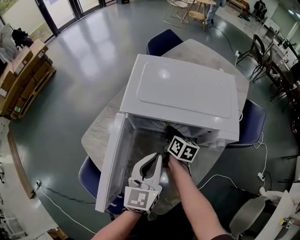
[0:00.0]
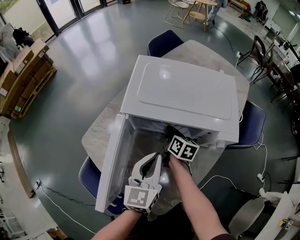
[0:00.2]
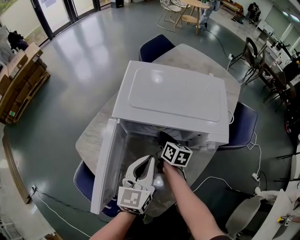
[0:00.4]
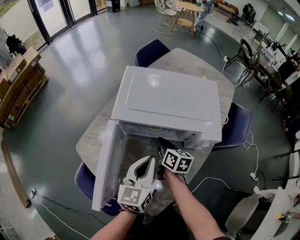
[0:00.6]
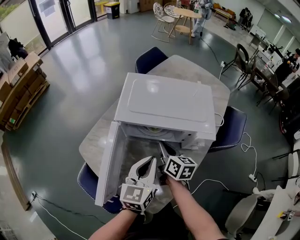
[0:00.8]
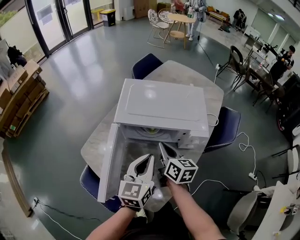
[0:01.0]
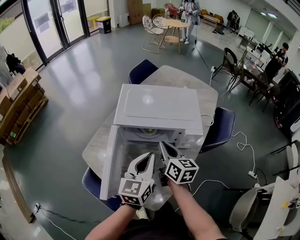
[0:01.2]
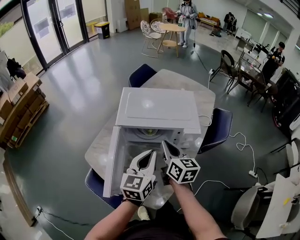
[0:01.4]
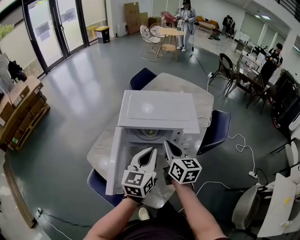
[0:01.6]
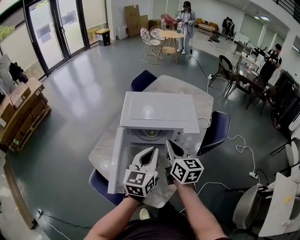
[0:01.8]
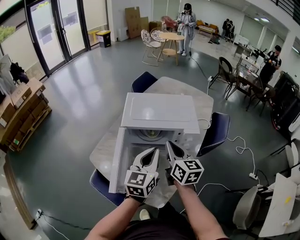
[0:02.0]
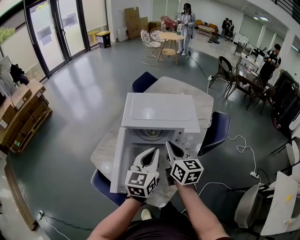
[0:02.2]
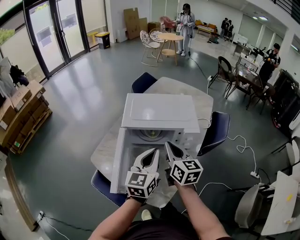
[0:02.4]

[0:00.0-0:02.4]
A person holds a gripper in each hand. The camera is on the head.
0:00.0 to 0:01.2: The left gripper goes roughly 10 cm upward, while the right gripper shifts some 25 cm upward and backward.
0:01.2 to 0:02.4: The left gripper ends up about 5 cm from where it was. The right gripper moves upward and backward, roughly 10 cm.

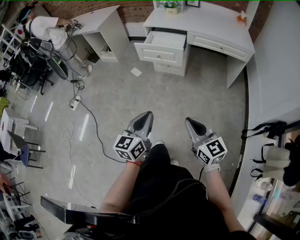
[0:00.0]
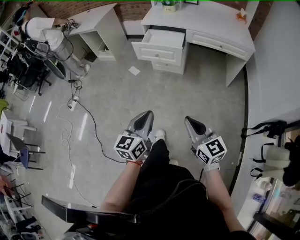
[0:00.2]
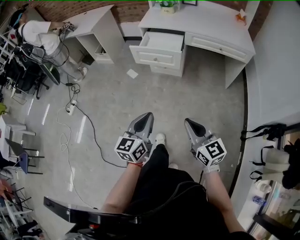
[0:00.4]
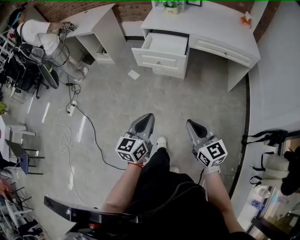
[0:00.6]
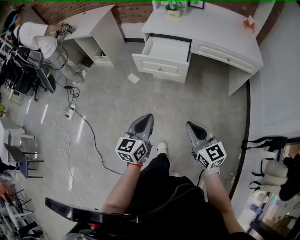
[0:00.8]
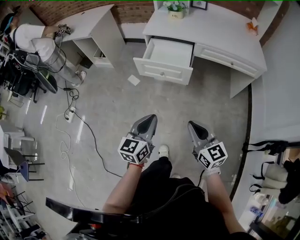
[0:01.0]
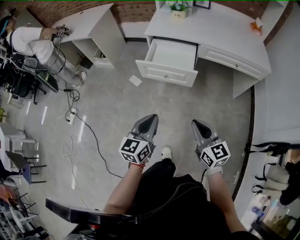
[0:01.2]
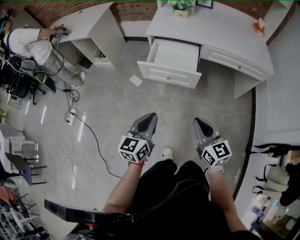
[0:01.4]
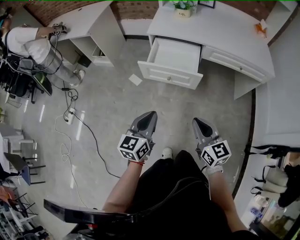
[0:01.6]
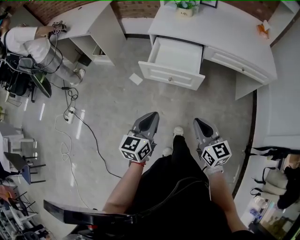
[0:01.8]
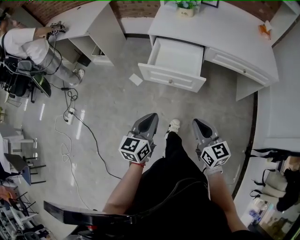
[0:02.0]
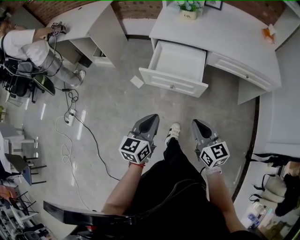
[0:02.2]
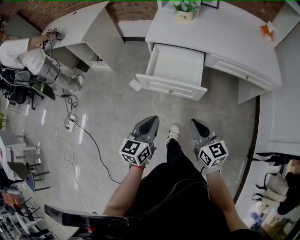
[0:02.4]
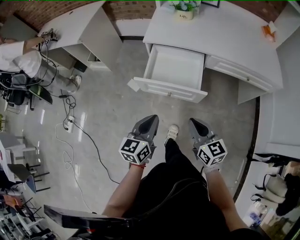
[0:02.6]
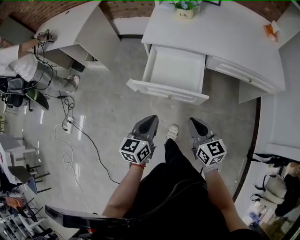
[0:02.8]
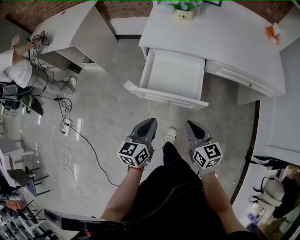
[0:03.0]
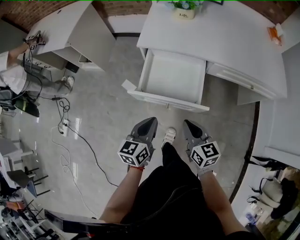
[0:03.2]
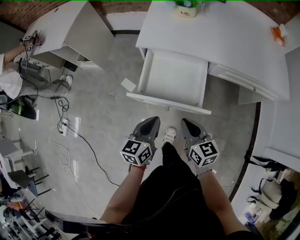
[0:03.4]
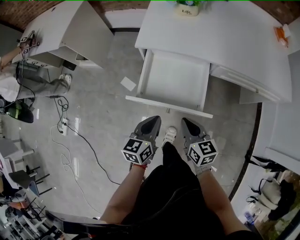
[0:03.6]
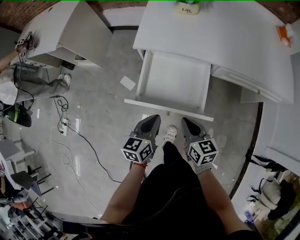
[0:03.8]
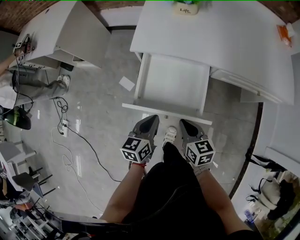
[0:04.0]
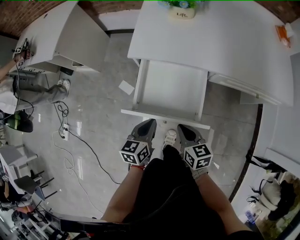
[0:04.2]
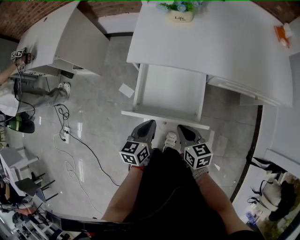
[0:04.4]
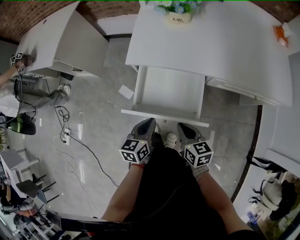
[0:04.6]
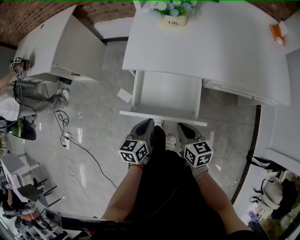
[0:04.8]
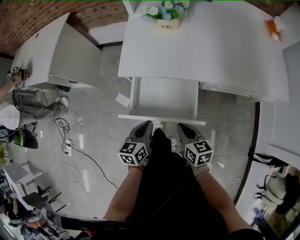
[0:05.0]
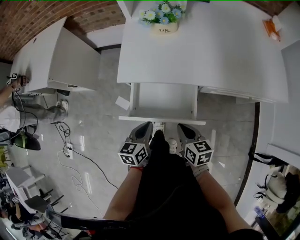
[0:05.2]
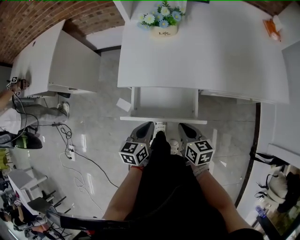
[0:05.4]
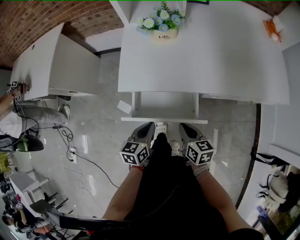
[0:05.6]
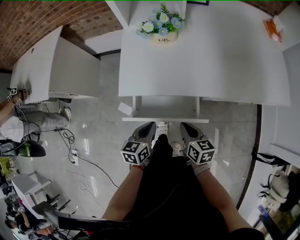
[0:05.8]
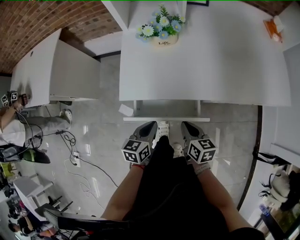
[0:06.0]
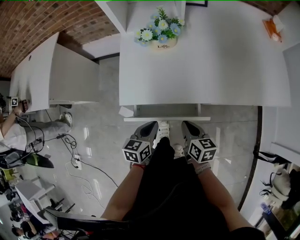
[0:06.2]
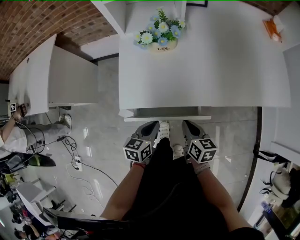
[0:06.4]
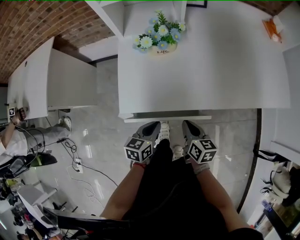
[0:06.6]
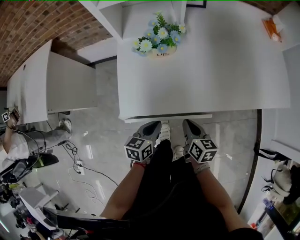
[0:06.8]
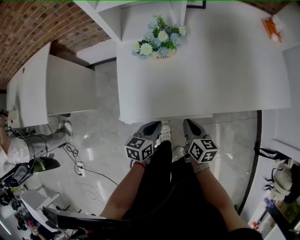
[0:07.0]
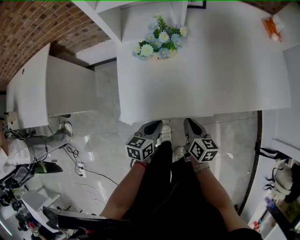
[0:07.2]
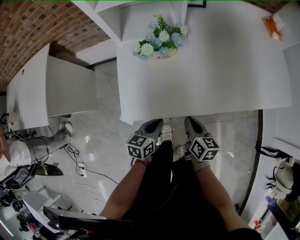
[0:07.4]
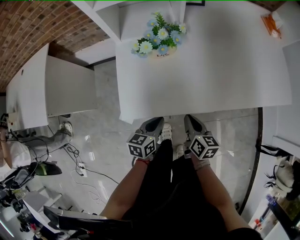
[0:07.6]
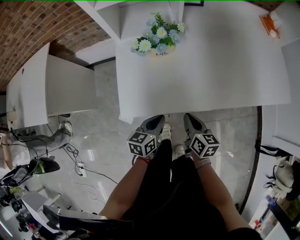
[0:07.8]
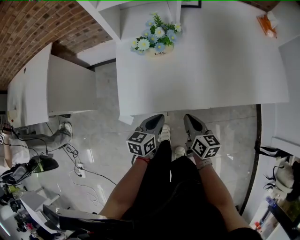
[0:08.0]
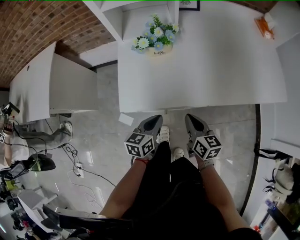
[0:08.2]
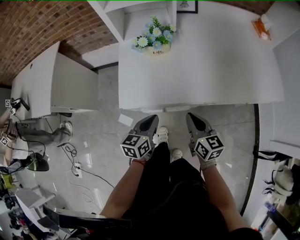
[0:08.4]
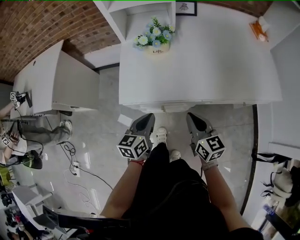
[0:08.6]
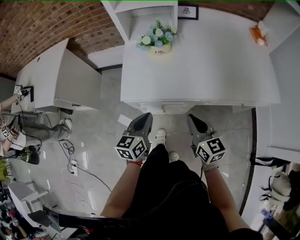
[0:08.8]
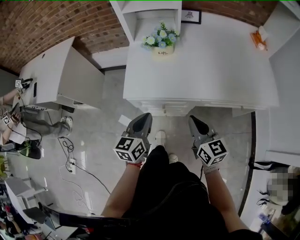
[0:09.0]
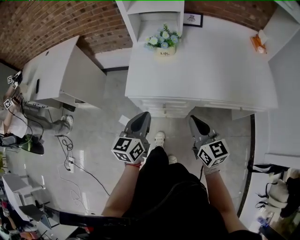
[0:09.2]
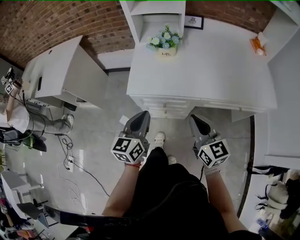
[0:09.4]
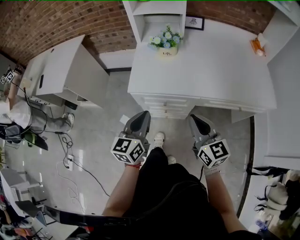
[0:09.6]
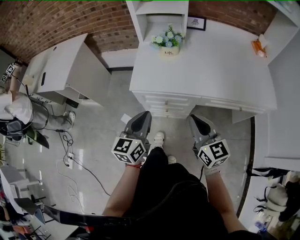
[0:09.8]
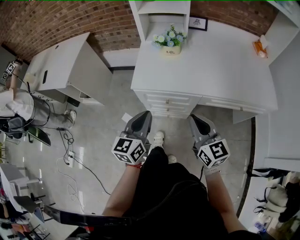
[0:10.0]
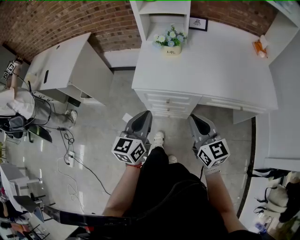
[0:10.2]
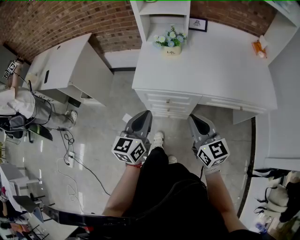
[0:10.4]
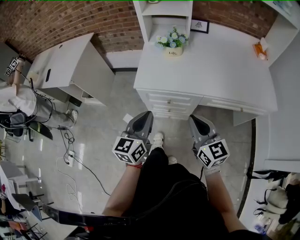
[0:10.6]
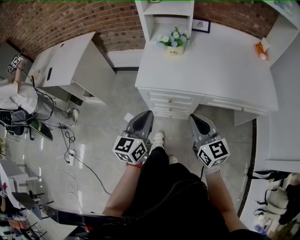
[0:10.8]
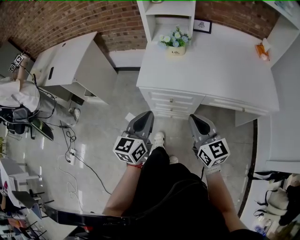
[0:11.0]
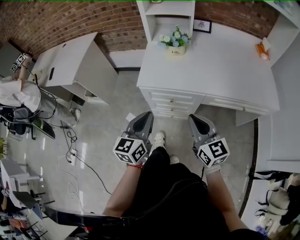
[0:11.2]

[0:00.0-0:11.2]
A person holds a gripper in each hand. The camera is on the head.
0:00.0 to 0:01.6: The grippers both shift forward by about 30 cm.
0:01.6 to 0:03.2: Both grippers travel together forward and downward, about 25 cm.
0:03.2 to 0:04.8: Both grippers move forward and downward, some 15 cm.
0:04.8 to 0:06.4: The grippers both shift forward by approximately 15 cm.
0:06.4 to 0:08.0: The left gripper shifts by some 5 cm.
0:08.0 to 0:09.6: The grippers both shift upward and backward by about 20 cm. The right gripper swivels about 40 degrees; the left gripper turns by roughly 30 degrees.
0:09.6 to 0:11.2: The left gripper heads backward, covering approximately 5 cm.

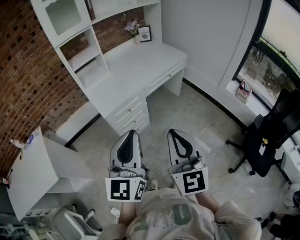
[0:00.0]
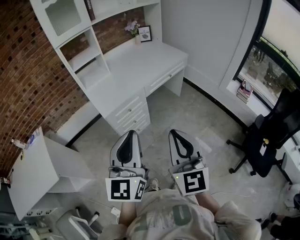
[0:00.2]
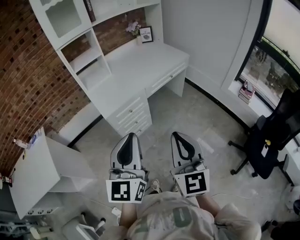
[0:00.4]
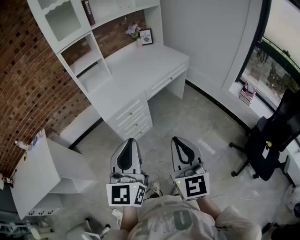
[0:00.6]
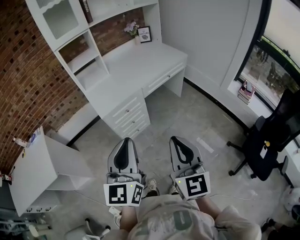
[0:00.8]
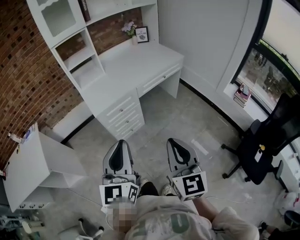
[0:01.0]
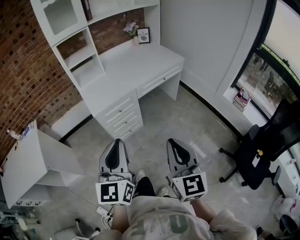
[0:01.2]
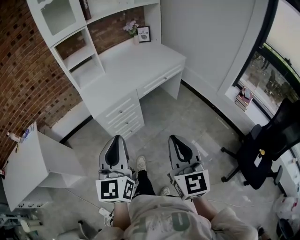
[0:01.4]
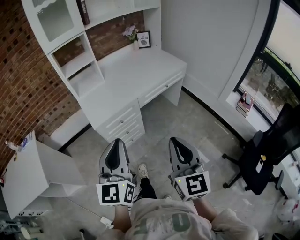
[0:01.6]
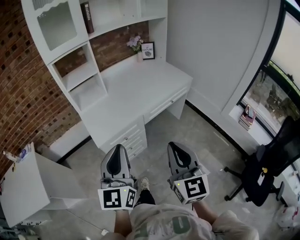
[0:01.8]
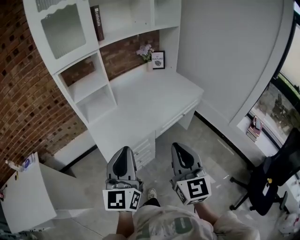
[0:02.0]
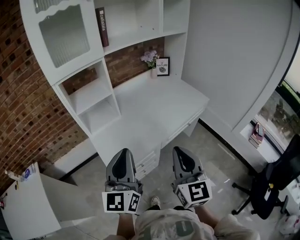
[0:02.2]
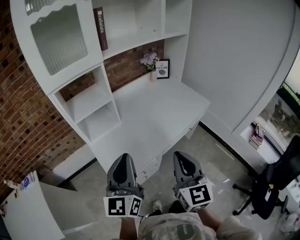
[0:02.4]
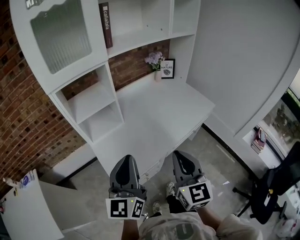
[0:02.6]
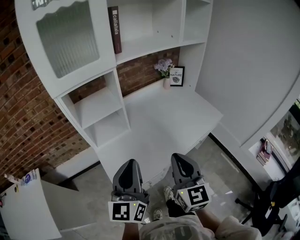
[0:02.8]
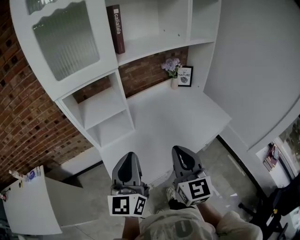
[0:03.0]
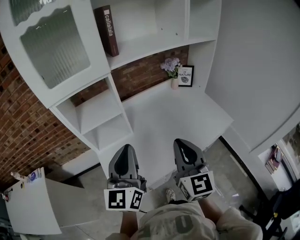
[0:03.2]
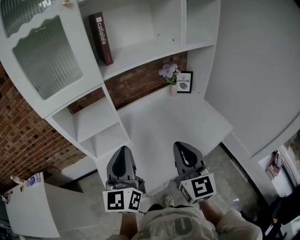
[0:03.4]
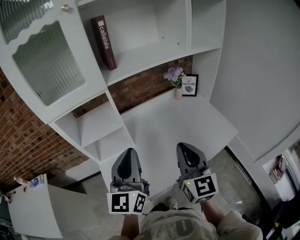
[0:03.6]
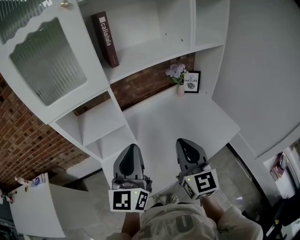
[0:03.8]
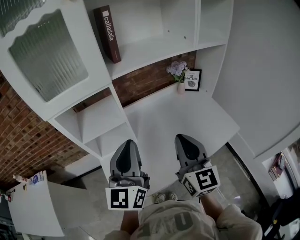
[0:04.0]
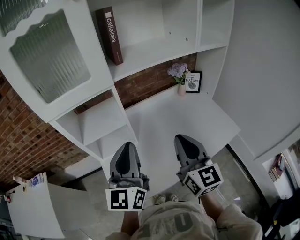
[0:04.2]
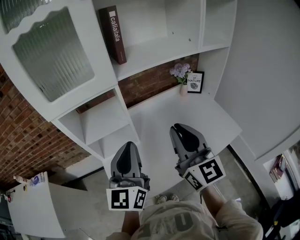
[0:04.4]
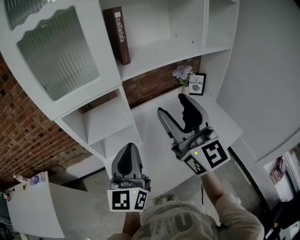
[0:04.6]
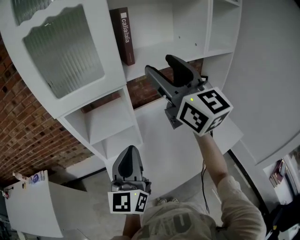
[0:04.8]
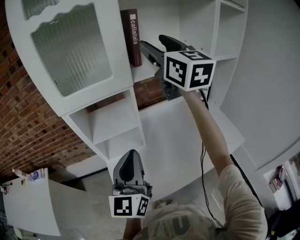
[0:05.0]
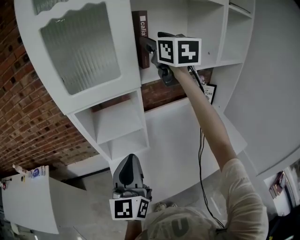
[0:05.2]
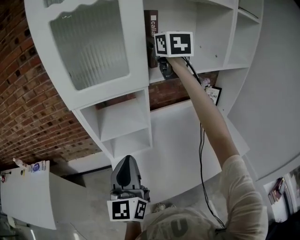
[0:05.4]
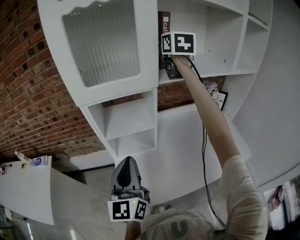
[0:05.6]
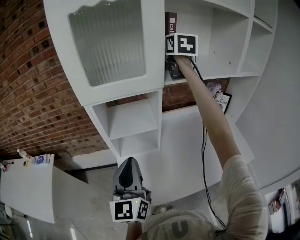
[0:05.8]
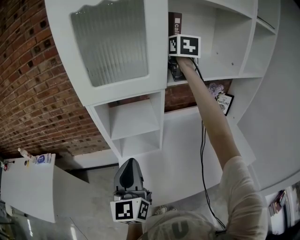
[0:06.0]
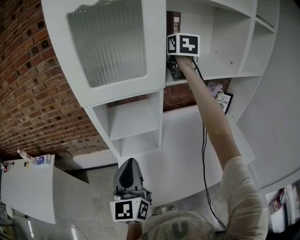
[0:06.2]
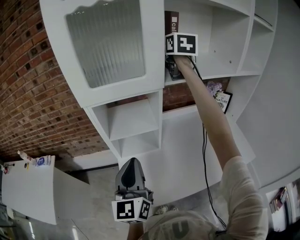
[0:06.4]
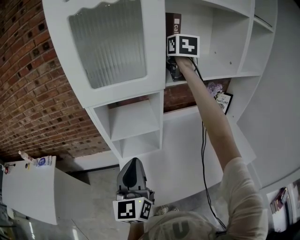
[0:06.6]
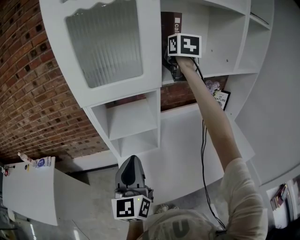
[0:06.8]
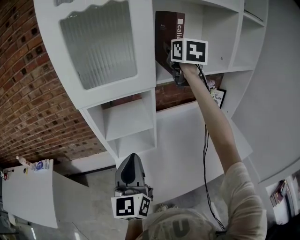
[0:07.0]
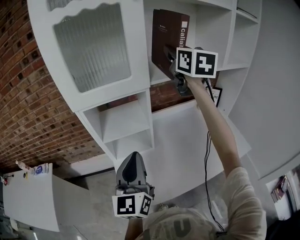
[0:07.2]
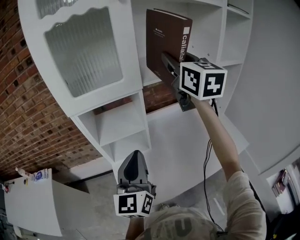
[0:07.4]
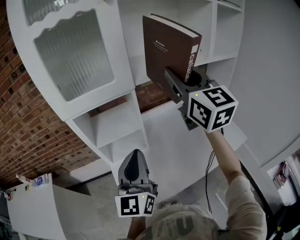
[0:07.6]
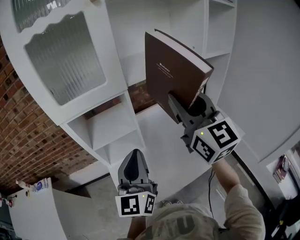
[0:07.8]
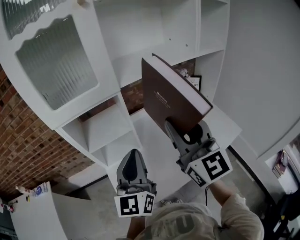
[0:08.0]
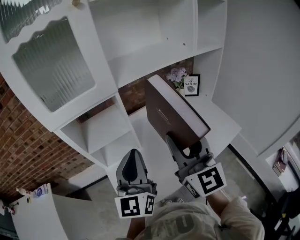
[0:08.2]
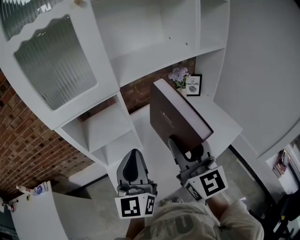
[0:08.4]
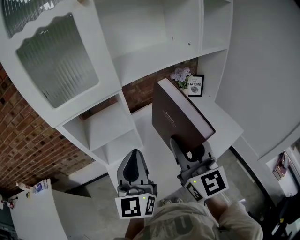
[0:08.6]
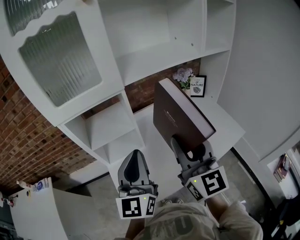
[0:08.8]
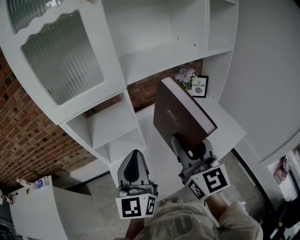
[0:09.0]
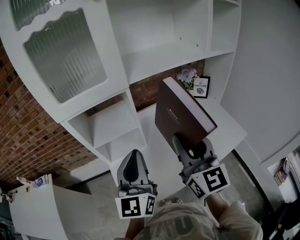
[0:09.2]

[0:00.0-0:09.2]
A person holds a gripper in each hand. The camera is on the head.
0:00.0 to 0:01.6: The left gripper moves forward, some 5 cm. The right gripper shifts about 10 cm to the right and forward.
0:01.6 to 0:03.0: The two grippers travel together, forward, roughly 40 cm.
0:03.0 to 0:04.6: The left gripper goes roughly 10 cm forward; the right gripper goes roughly 25 cm upward and forward, changes its angle by about 30 degrees, and opens.
0:04.6 to 0:06.2: The right gripper goes approximately 35 cm forward, changes its angle by roughly 30 degrees, and closes its fingers. Meanwhile the left gripper goes some 10 cm to the left.
0:06.2 to 0:07.6: The right gripper travels backward by roughly 25 cm. The left gripper is displaced to the right by some 10 cm.
0:07.6 to 0:09.2: The right gripper shifts approximately 20 cm downward and backward.

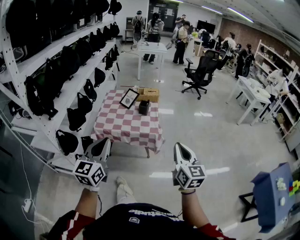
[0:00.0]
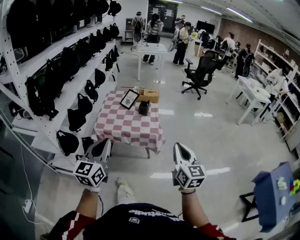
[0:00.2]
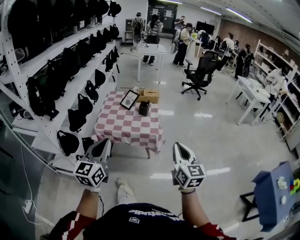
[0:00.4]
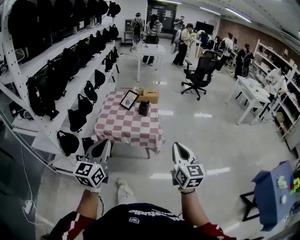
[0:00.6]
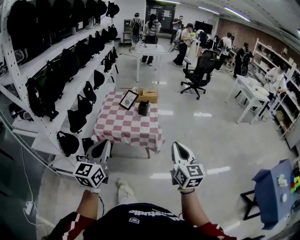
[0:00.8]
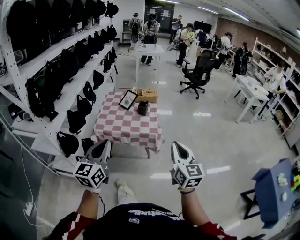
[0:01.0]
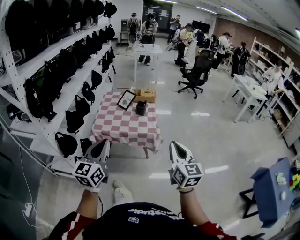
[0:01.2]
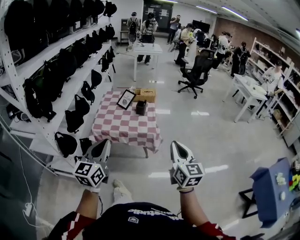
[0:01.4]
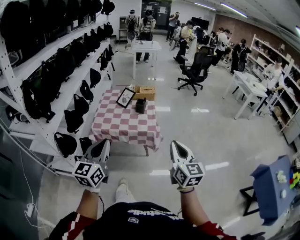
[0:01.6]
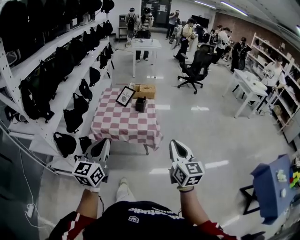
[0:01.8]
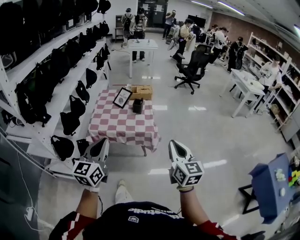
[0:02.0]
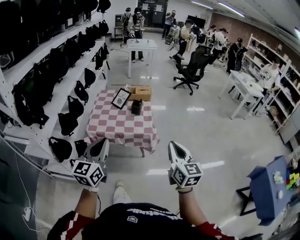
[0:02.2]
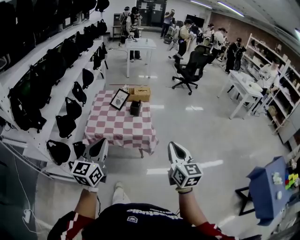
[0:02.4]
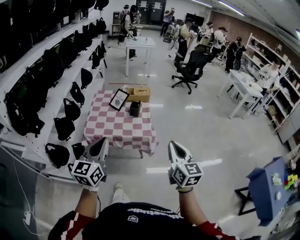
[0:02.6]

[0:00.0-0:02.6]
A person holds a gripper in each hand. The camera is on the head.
0:00.0 to 0:01.2: There are only small adjustments of the grippers.
0:01.2 to 0:02.6: Both grippers travel together forward, approximately 10 cm.
